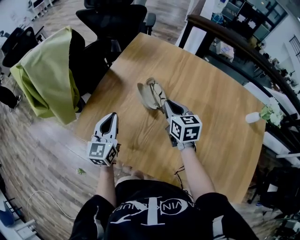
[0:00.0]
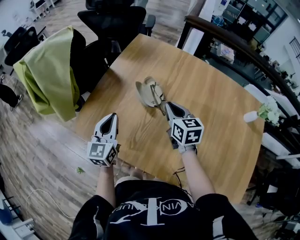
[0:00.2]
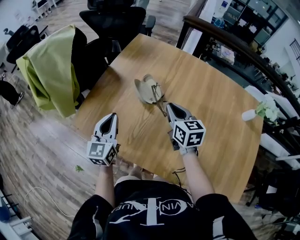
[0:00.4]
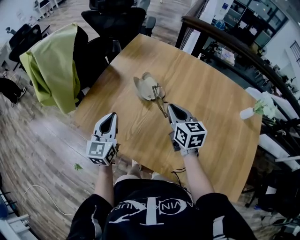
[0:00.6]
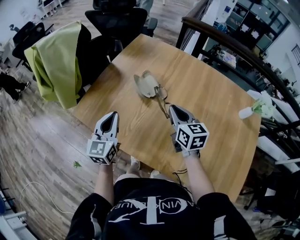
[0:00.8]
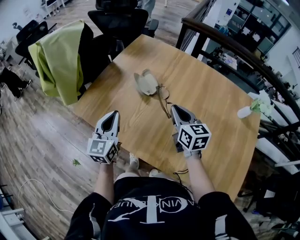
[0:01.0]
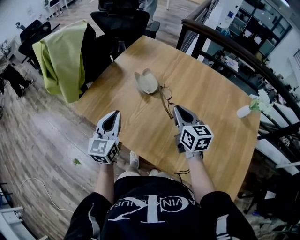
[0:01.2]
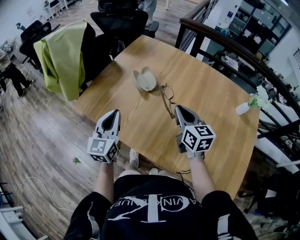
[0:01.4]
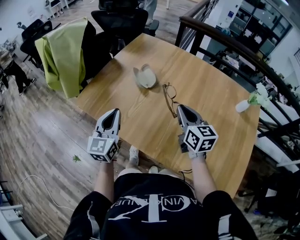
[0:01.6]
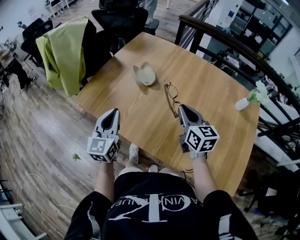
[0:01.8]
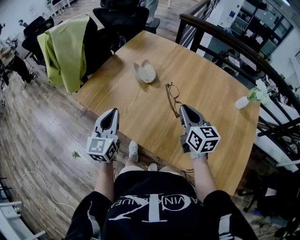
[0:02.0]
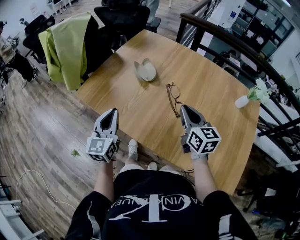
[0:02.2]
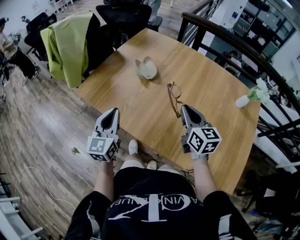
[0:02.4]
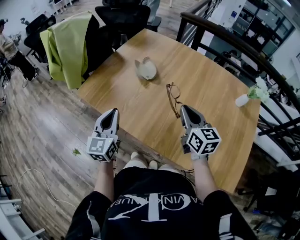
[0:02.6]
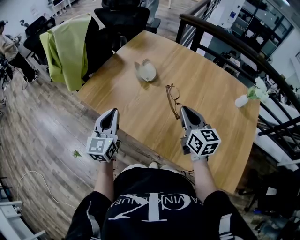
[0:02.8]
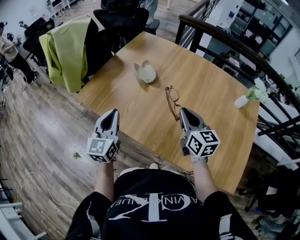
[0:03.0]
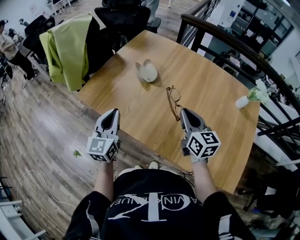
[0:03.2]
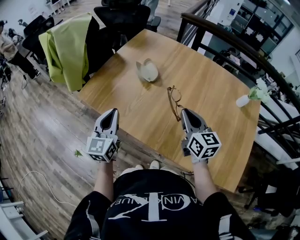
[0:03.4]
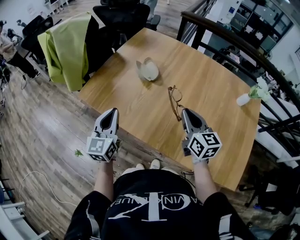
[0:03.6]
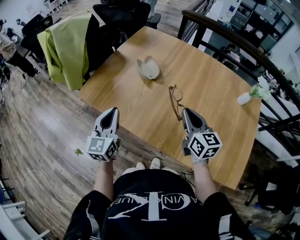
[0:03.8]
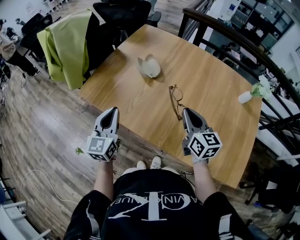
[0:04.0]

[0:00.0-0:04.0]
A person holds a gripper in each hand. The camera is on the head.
0:00.0 to 0:01.4: Both grippers travel together backward and to the right, approximately 20 cm.
0:01.4 to 0:02.6: The two grippers go roughly 5 cm backward.
0:02.6 to 0:04.0: The grippers stay close to where they were, moving slightly.

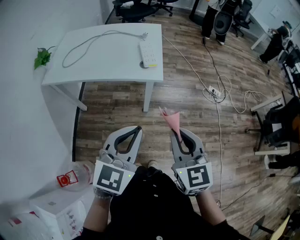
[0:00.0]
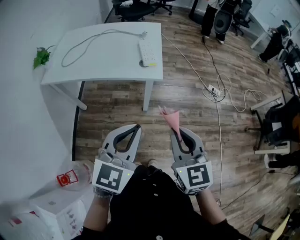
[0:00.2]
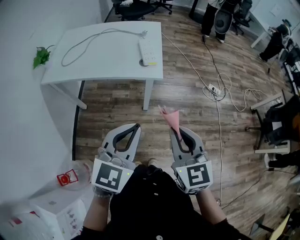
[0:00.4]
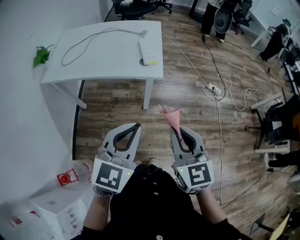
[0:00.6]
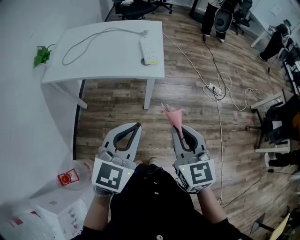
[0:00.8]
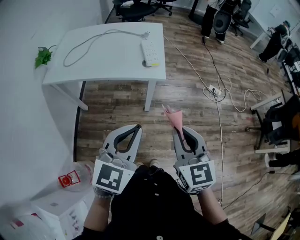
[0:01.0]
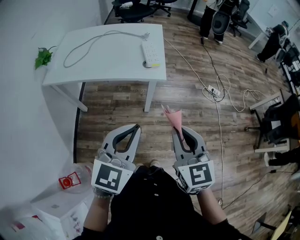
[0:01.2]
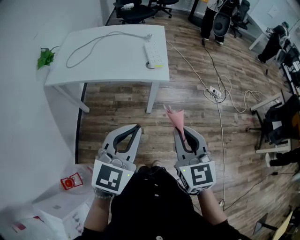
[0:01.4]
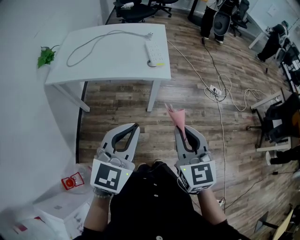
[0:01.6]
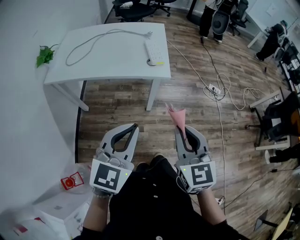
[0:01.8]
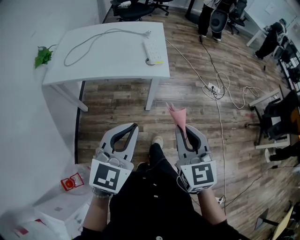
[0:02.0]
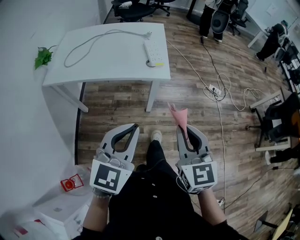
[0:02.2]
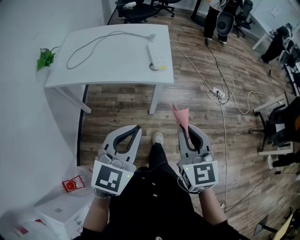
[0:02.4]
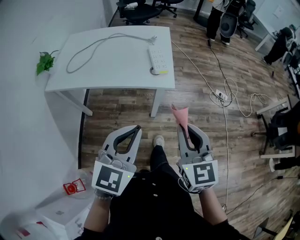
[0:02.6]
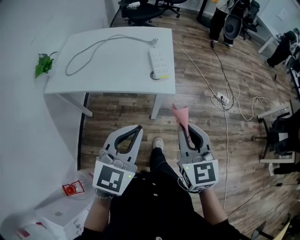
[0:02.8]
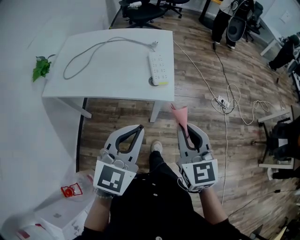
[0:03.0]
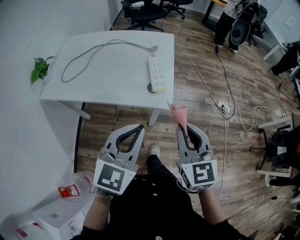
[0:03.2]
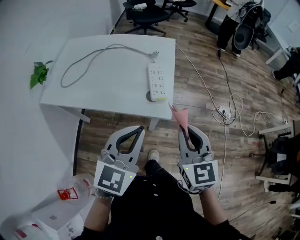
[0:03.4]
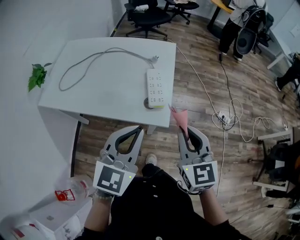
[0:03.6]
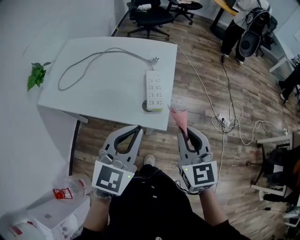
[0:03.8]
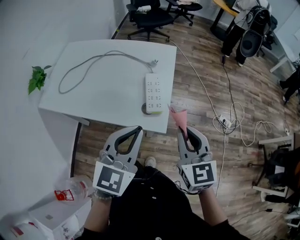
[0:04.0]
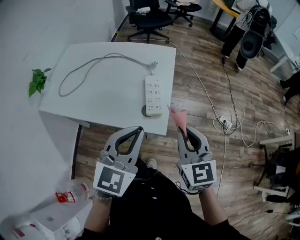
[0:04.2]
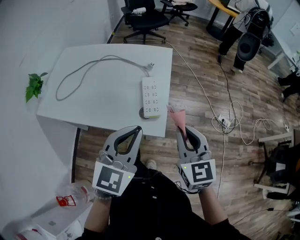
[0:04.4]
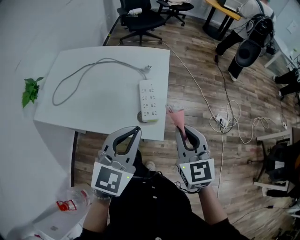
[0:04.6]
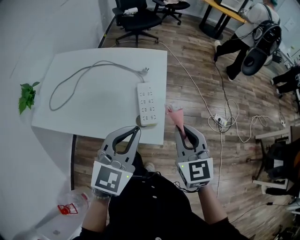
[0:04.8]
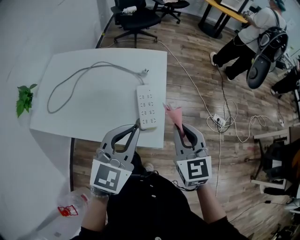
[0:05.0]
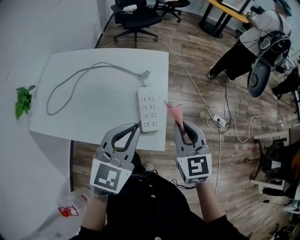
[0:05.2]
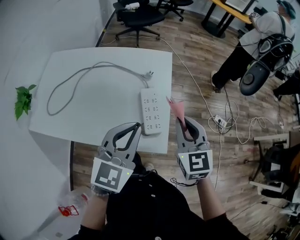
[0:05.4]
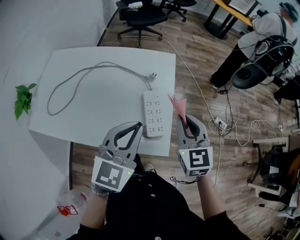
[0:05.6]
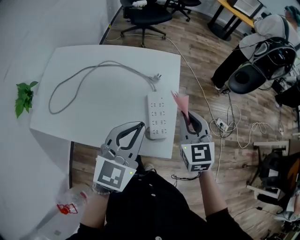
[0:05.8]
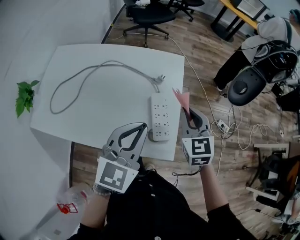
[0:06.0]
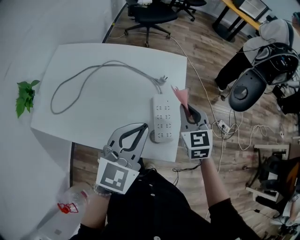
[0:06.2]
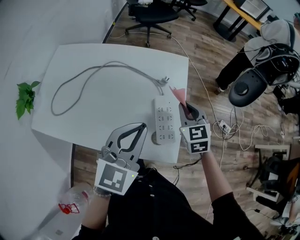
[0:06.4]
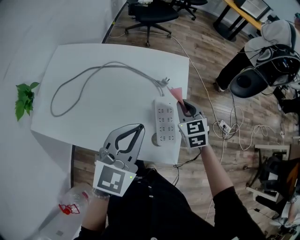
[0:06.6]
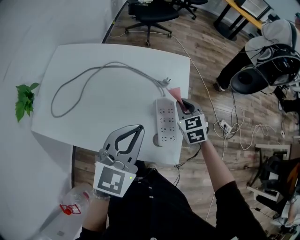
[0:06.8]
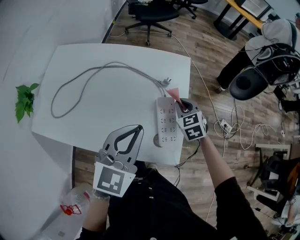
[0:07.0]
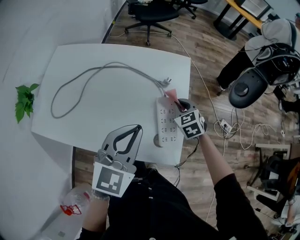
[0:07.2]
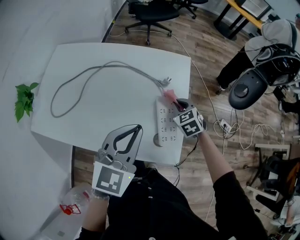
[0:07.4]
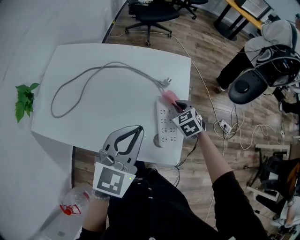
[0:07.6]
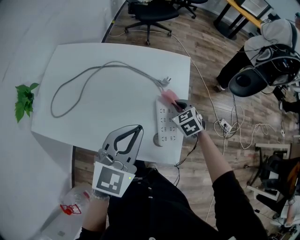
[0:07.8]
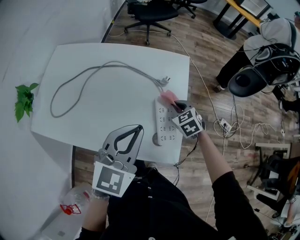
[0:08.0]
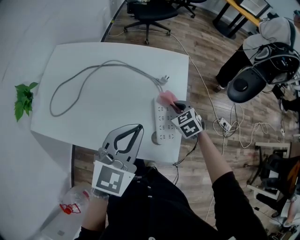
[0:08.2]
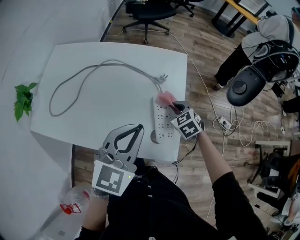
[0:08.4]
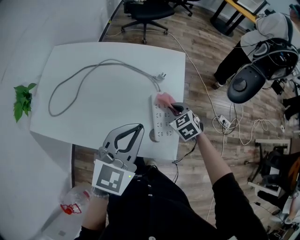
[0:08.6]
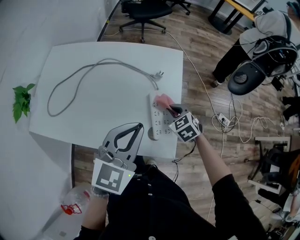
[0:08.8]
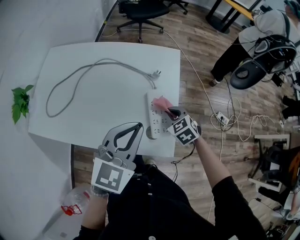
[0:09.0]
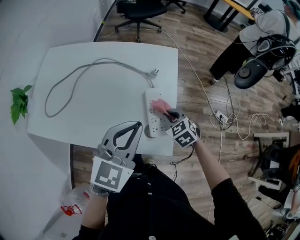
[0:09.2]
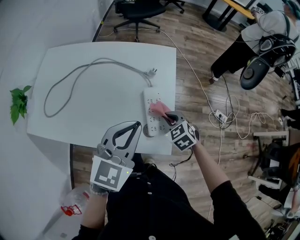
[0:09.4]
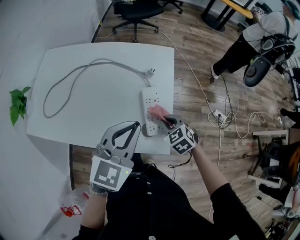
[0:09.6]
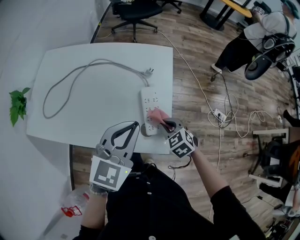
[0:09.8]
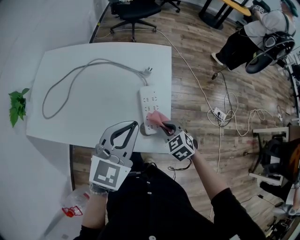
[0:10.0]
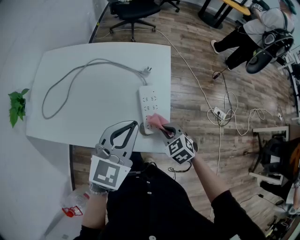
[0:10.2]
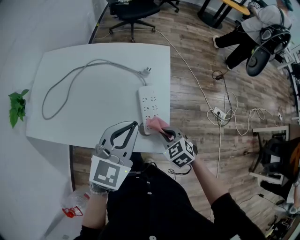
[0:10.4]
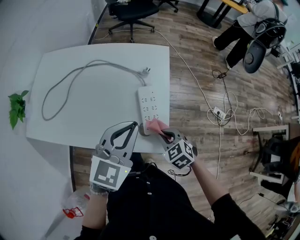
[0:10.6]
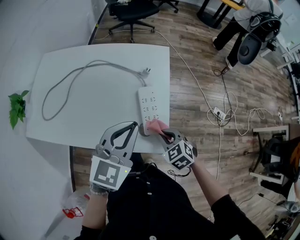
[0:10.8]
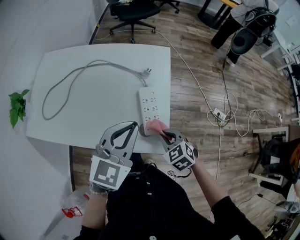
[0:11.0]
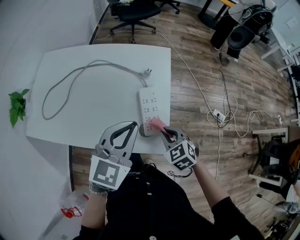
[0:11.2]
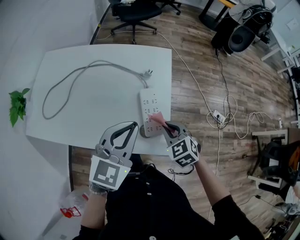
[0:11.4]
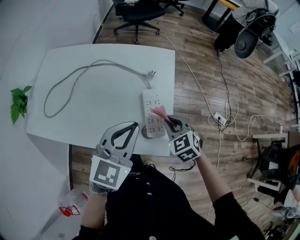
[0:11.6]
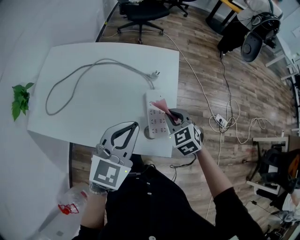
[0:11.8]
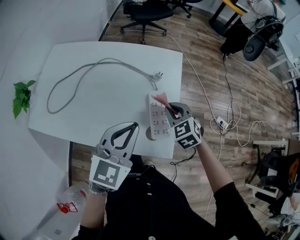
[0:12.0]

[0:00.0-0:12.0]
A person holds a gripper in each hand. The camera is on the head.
0:00.0 to 0:01.6: The left gripper goes about 5 cm to the left.
0:01.6 to 0:03.0: Both grippers move forward, some 15 cm.
0:03.0 to 0:04.4: The grippers both shift forward by roughly 20 cm.
0:04.4 to 0:06.0: The left gripper goes about 15 cm forward and to the left. Meanwhile the right gripper moves forward, roughly 20 cm.
0:06.0 to 0:07.6: The right gripper heads downward and forward, covering about 15 cm, and swivels roughly 30 degrees.
0:07.6 to 0:09.0: The right gripper travels backward by approximately 10 cm.
0:09.0 to 0:10.4: The right gripper travels backward by roughly 10 cm.
0:10.4 to 0:12.0: The right gripper heads forward and upward, covering roughly 15 cm.

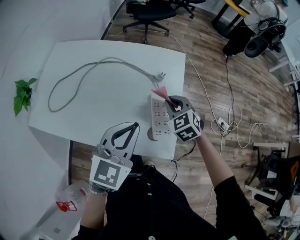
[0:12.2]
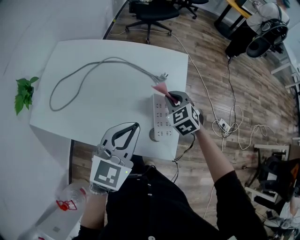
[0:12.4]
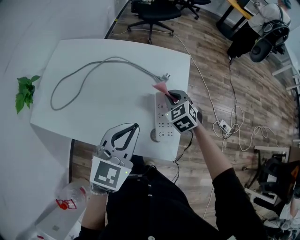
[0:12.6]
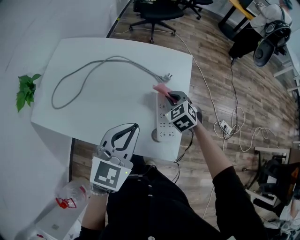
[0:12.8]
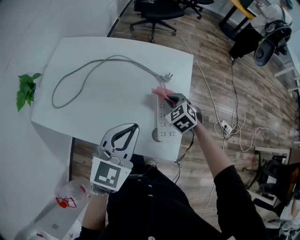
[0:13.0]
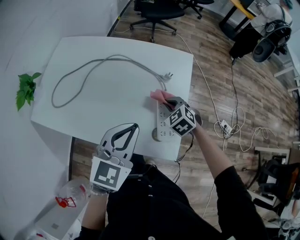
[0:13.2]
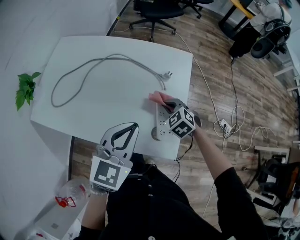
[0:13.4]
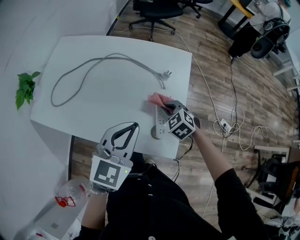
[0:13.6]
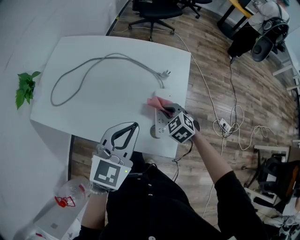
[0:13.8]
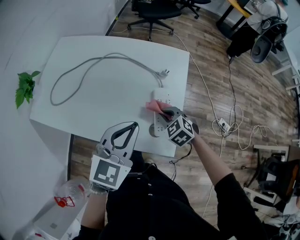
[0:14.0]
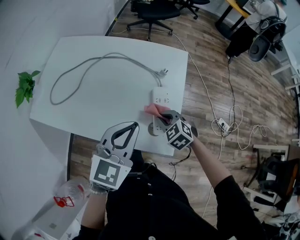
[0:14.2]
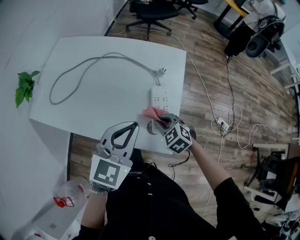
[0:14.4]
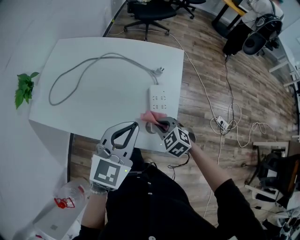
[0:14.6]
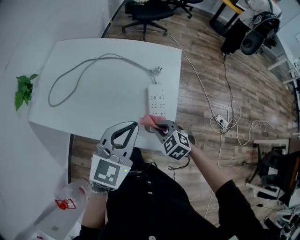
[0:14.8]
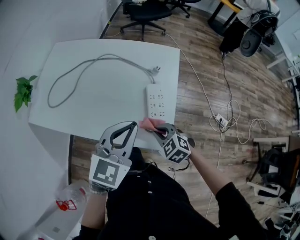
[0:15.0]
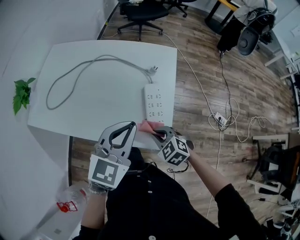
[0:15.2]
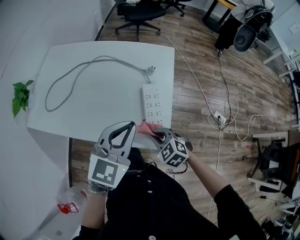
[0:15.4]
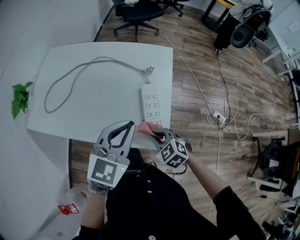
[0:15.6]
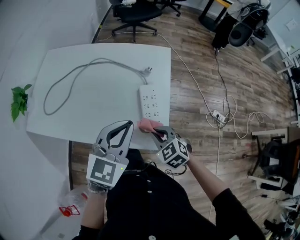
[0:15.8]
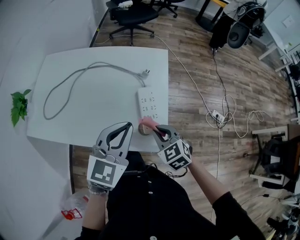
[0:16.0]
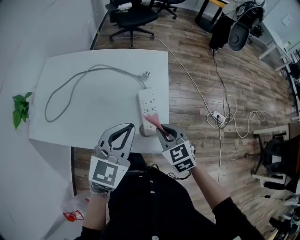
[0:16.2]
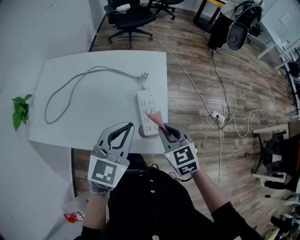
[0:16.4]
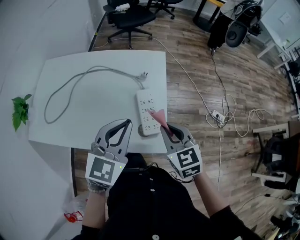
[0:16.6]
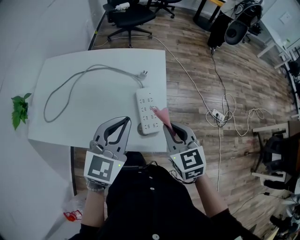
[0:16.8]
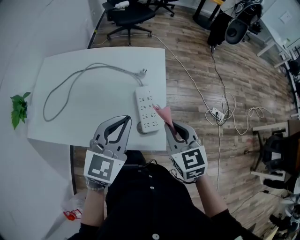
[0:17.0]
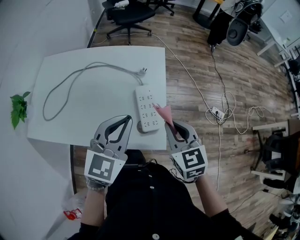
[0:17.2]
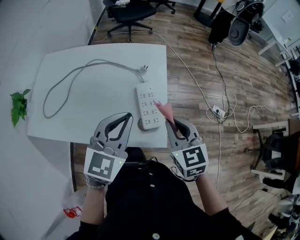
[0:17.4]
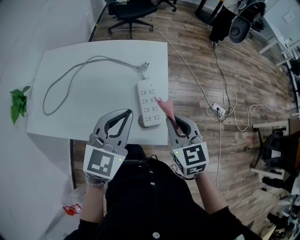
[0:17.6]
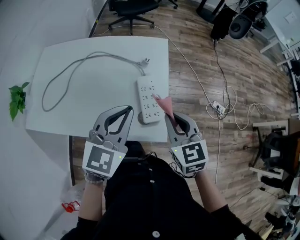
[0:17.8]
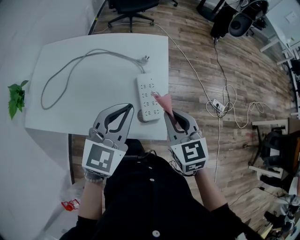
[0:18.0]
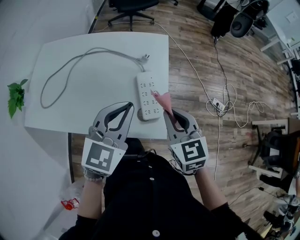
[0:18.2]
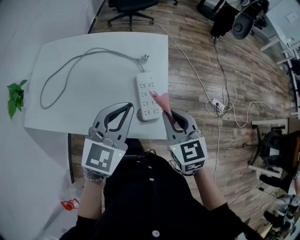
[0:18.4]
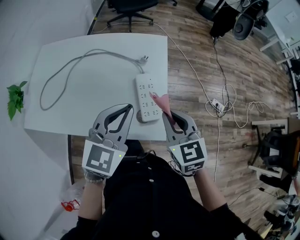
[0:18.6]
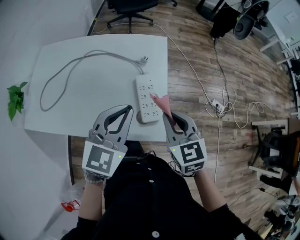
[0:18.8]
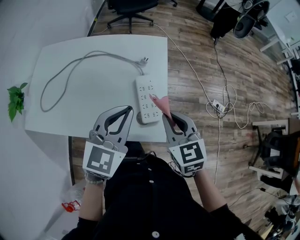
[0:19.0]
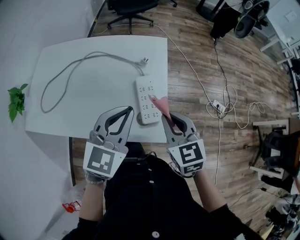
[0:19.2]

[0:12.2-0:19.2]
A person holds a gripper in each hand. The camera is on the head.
0:12.2 to 0:13.6: The right gripper shifts roughly 5 cm downward.
0:13.6 to 0:15.0: The right gripper goes roughly 15 cm backward; the left gripper ends up approximately 5 cm from where it was.
0:15.0 to 0:16.4: The right gripper moves upward and to the right, approximately 15 cm, and turns by some 40 degrees.
0:16.4 to 0:17.8: There are only small adjustments of the grippers.
0:17.8 to 0:19.2: Both grippers stay put.

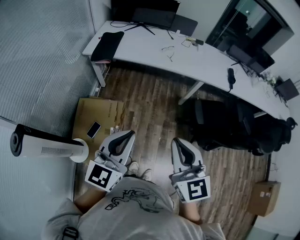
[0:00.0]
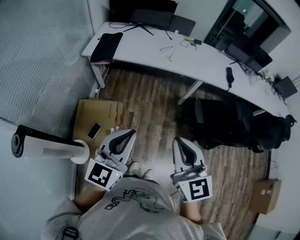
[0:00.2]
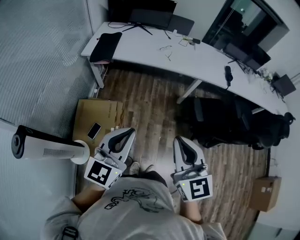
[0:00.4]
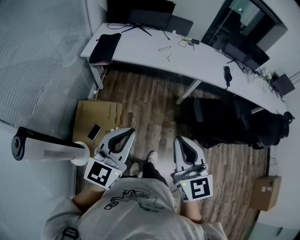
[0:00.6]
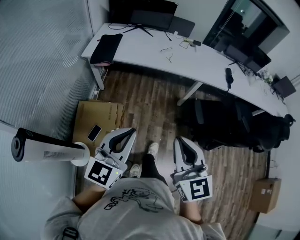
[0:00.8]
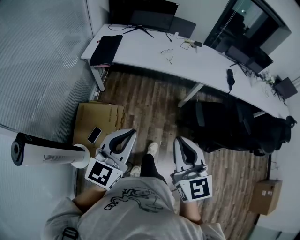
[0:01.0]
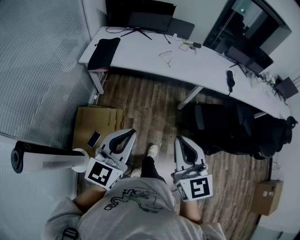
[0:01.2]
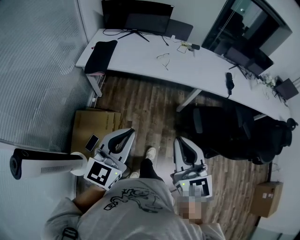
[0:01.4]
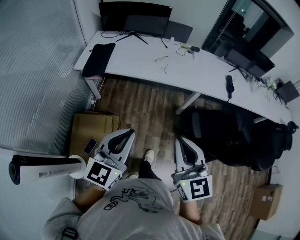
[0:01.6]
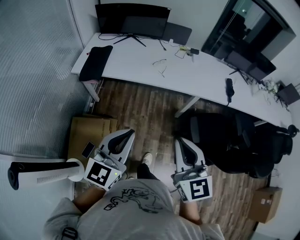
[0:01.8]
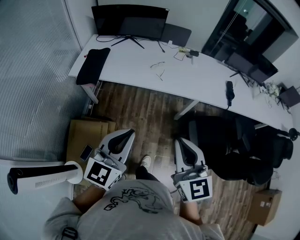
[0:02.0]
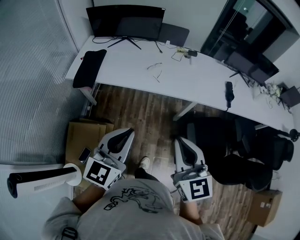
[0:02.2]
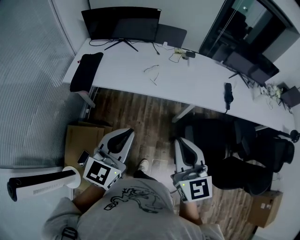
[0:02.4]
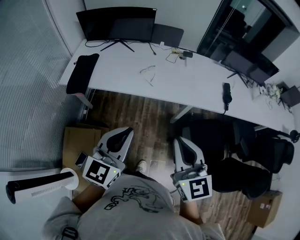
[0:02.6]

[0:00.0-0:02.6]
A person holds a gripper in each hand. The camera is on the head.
0:00.0 to 0:01.2: Both grippers travel together forward, roughly 5 cm.
0:01.2 to 0:02.6: Both grippers travel together forward and to the right, roughly 30 cm.
